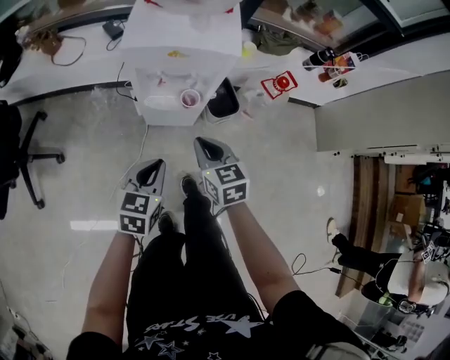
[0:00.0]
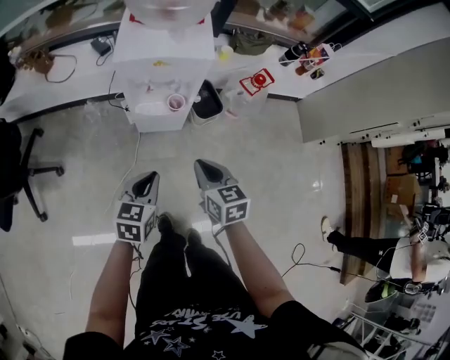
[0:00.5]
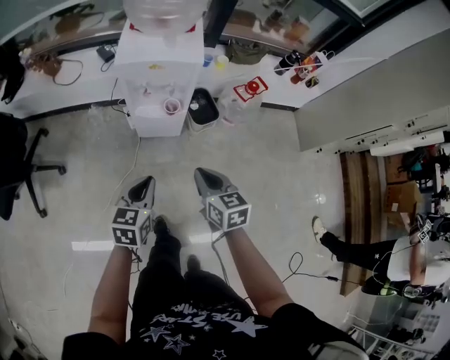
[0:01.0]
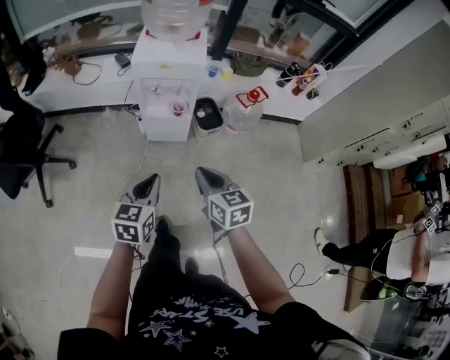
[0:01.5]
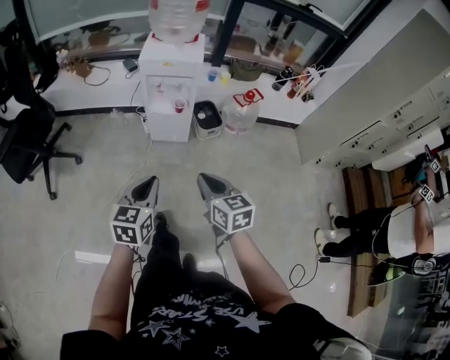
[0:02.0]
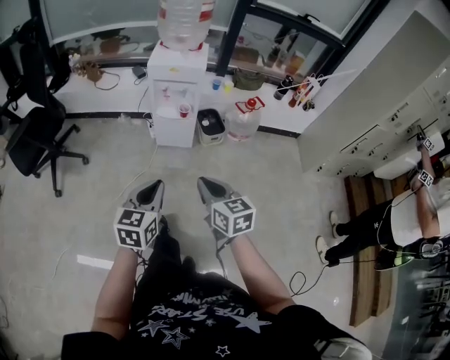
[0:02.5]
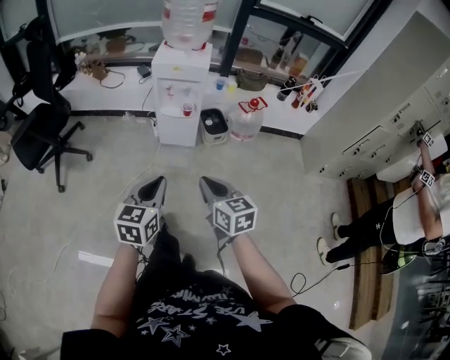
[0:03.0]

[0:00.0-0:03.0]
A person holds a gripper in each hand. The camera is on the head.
0:00.0 to 0:01.5: The grippers both shift backward and upward by about 25 cm.
0:01.5 to 0:03.0: The grippers both shift backward by about 20 cm.

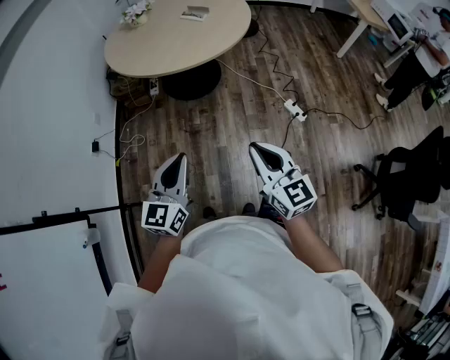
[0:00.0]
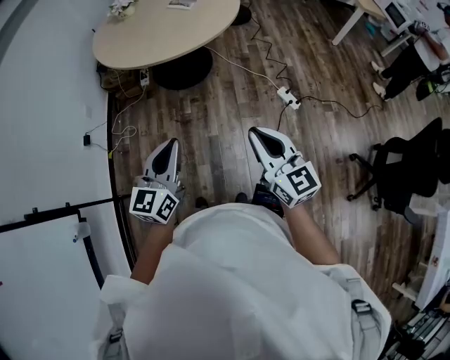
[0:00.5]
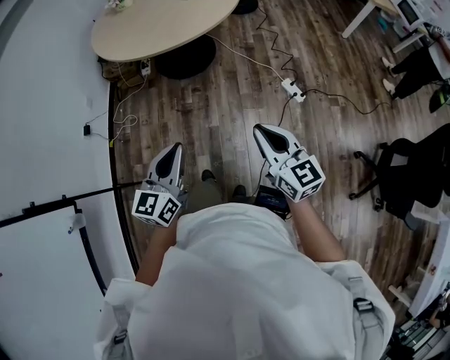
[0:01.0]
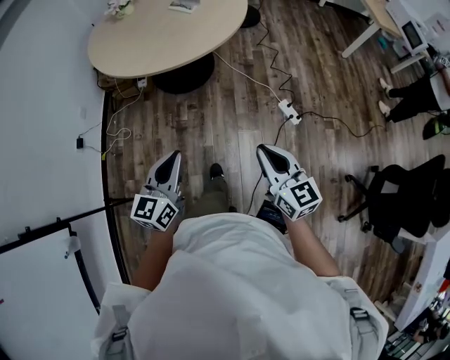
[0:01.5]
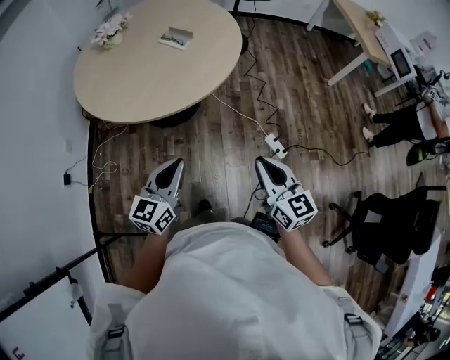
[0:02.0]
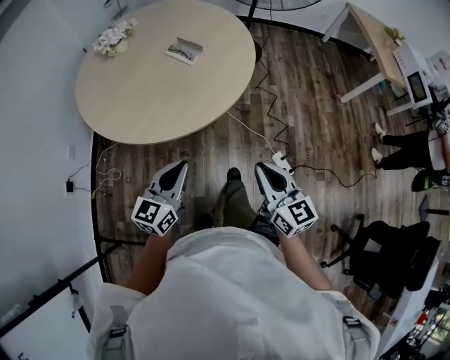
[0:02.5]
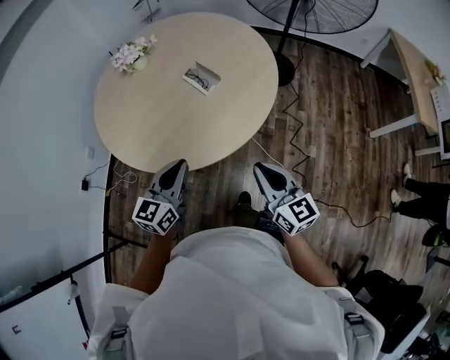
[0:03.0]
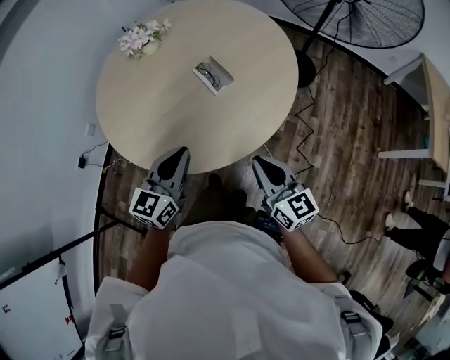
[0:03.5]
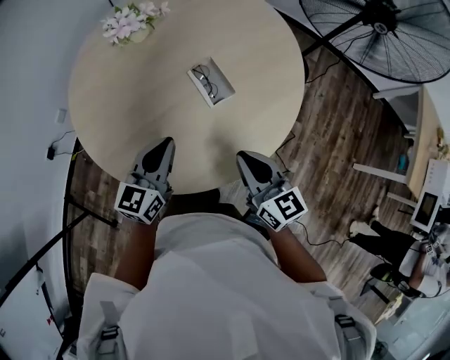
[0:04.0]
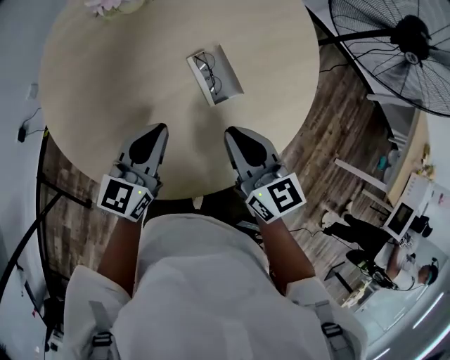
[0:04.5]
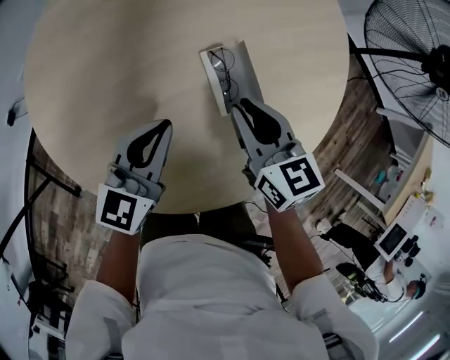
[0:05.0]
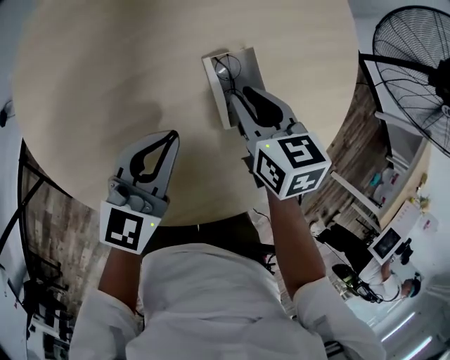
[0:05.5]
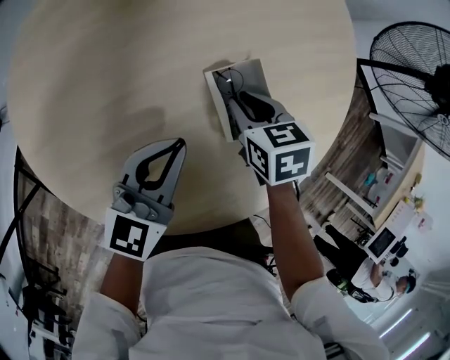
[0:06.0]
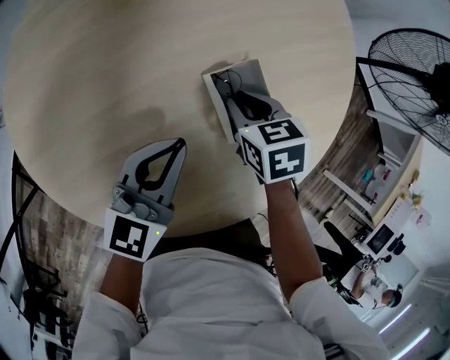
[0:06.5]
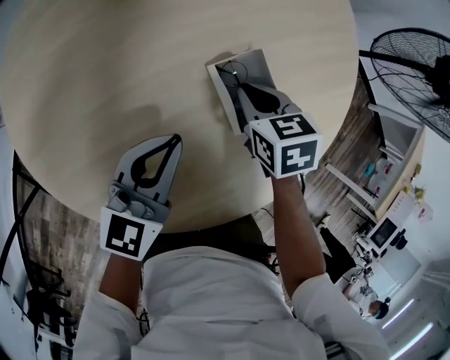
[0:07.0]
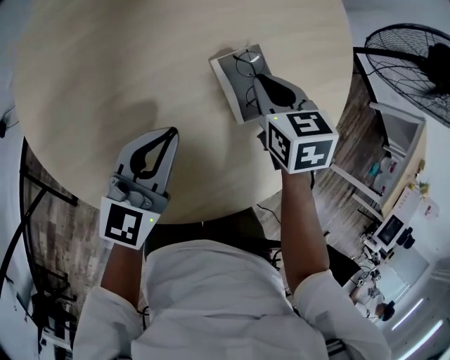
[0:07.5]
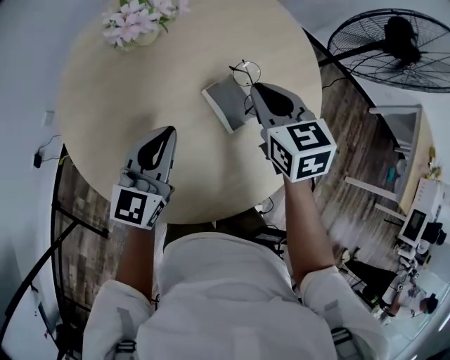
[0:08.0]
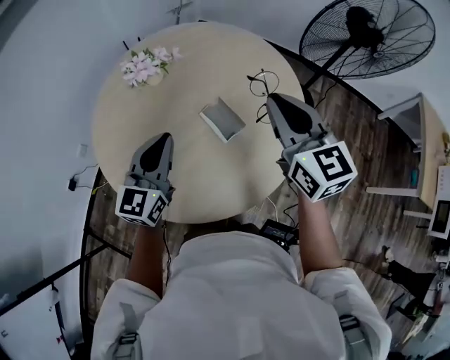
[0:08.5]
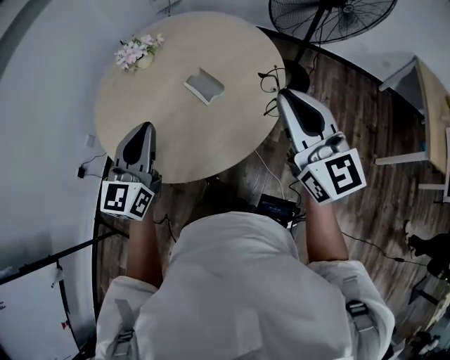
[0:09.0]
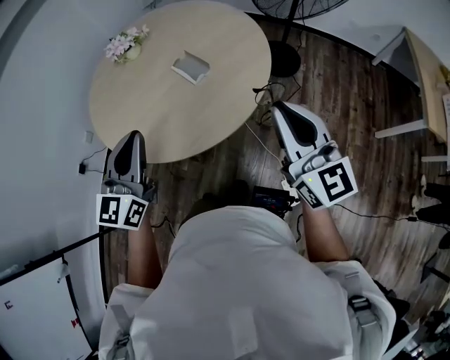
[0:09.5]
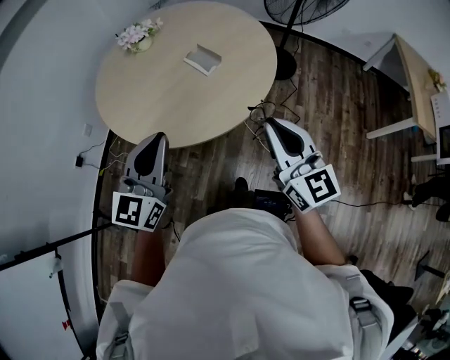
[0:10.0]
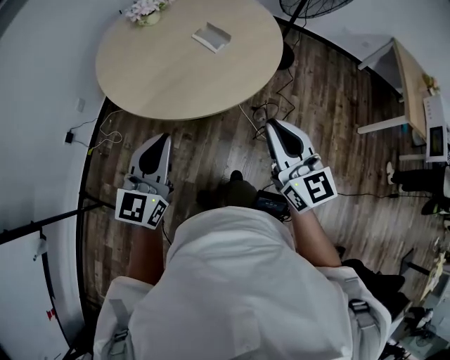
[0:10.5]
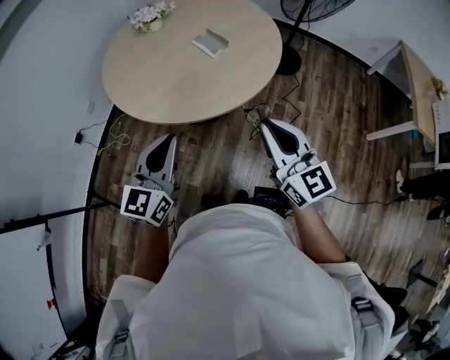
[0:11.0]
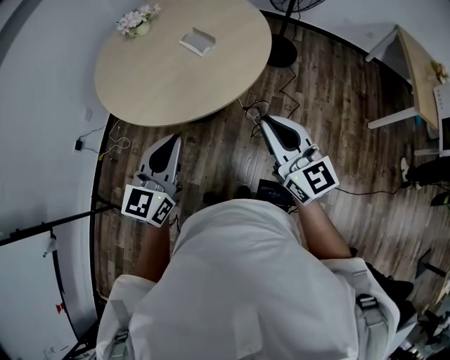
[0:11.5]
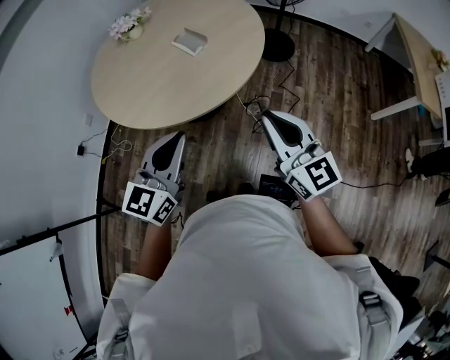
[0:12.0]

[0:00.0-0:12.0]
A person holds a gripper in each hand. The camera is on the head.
0:00.0 to 0:02.0: The left gripper heads forward, covering some 30 cm; the right gripper goes some 30 cm forward and to the right.
0:02.0 to 0:04.0: The pair of grippers is taken some 50 cm. The right gripper swivels about 30 degrees; the left gripper turns by some 30 degrees.
0:04.0 to 0:06.0: The right gripper travels forward and downward by some 35 cm, and angles its fingers downward, by about 40 degrees. The left gripper heads forward and downward, covering about 20 cm.
0:06.0 to 0:08.0: The right gripper is displaced upward by some 25 cm, and changes its angle by some 30 degrees; the left gripper shifts some 15 cm upward and to the left.
0:08.0 to 0:10.0: The two grippers travel together, backward, roughly 50 cm. The right gripper tilts its fingers some 40 degrees upward; the left gripper travels upward by about 20 cm.
0:10.0 to 0:12.0: The left gripper moves to the right and backward, about 15 cm; the right gripper heads backward and to the right, covering approximately 10 cm.

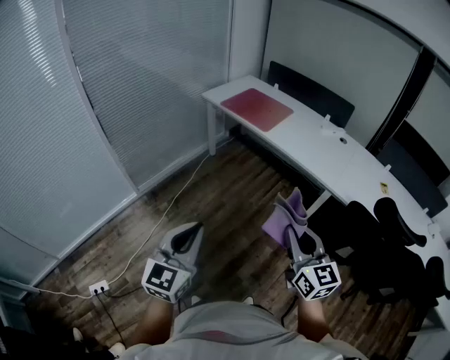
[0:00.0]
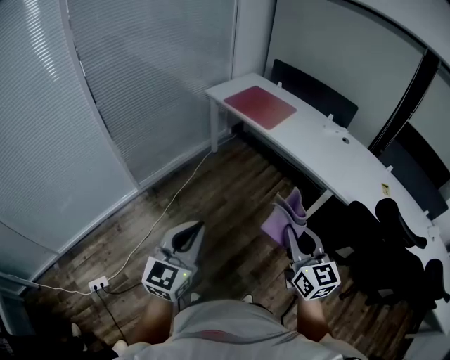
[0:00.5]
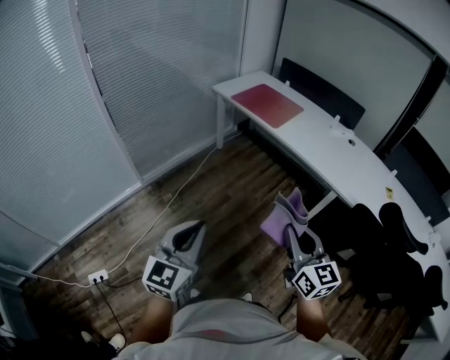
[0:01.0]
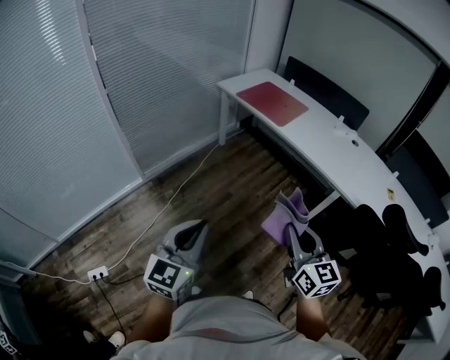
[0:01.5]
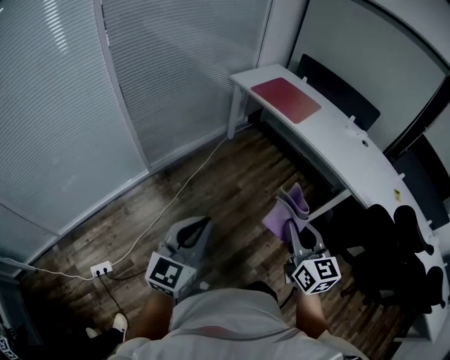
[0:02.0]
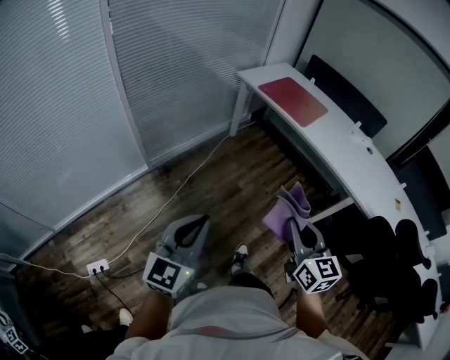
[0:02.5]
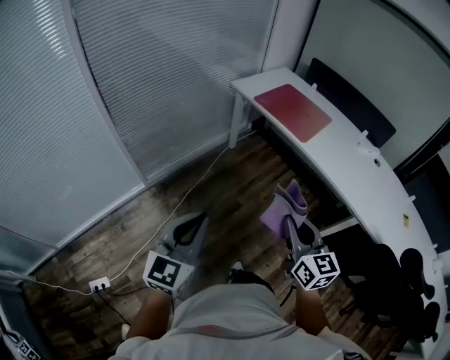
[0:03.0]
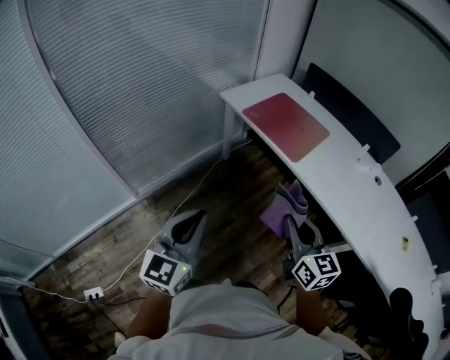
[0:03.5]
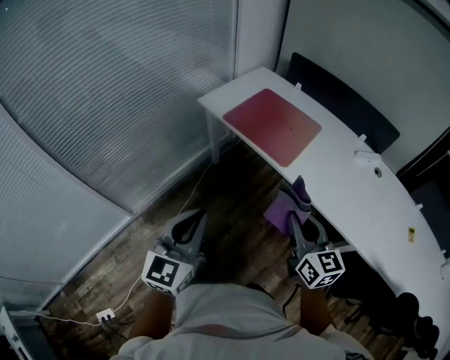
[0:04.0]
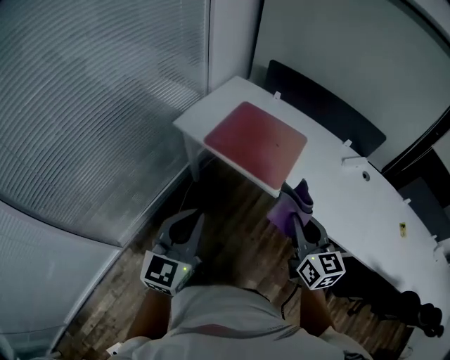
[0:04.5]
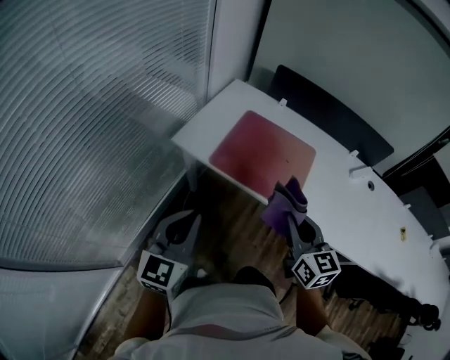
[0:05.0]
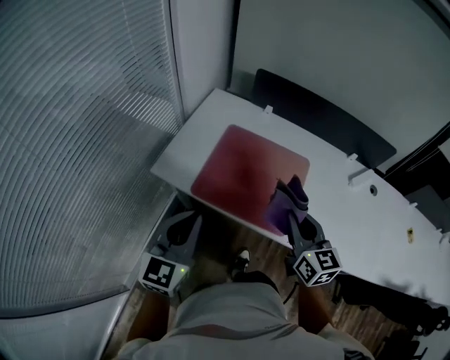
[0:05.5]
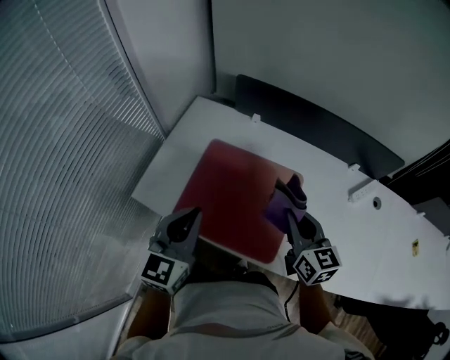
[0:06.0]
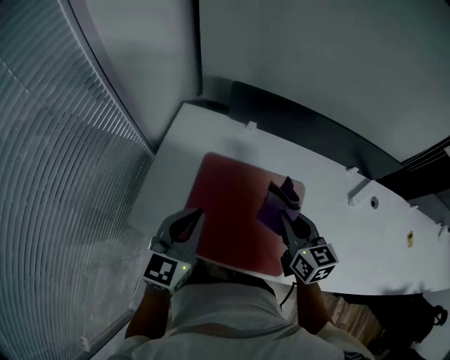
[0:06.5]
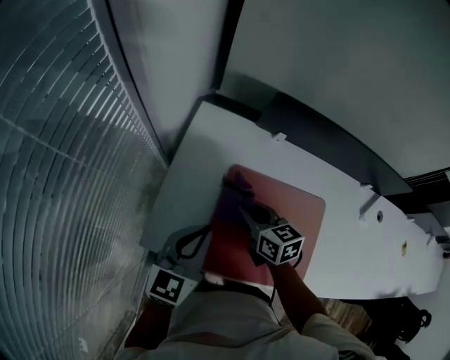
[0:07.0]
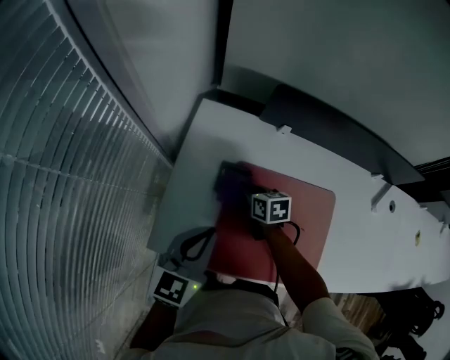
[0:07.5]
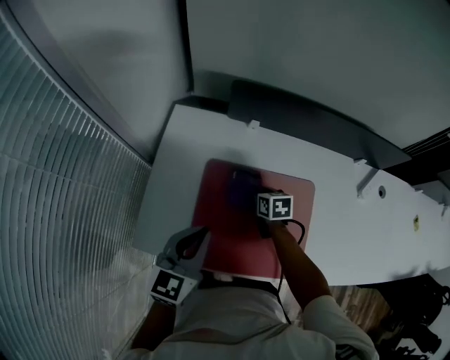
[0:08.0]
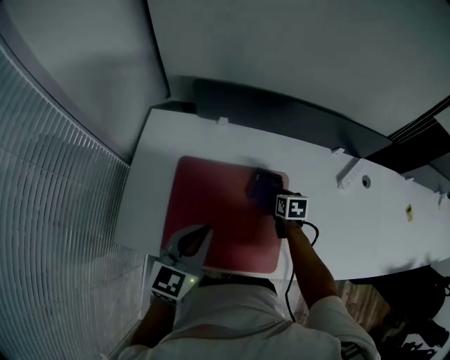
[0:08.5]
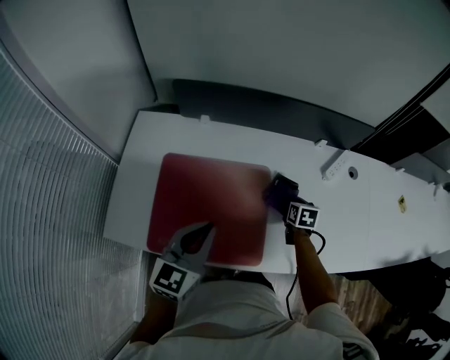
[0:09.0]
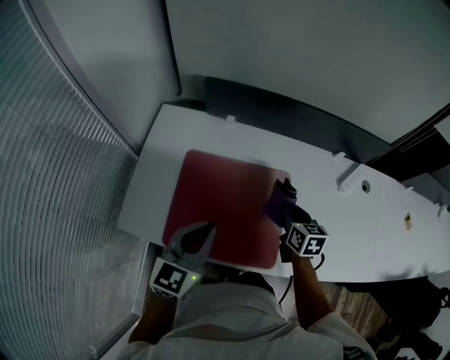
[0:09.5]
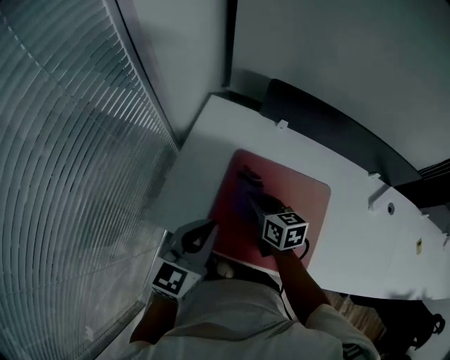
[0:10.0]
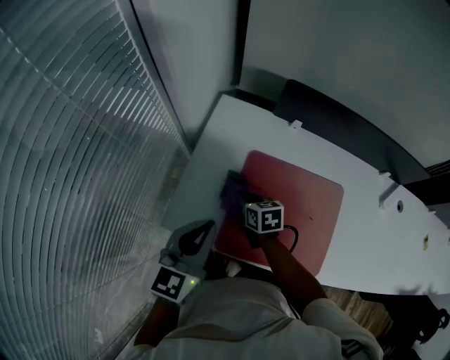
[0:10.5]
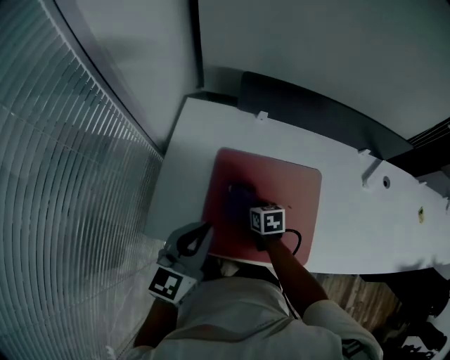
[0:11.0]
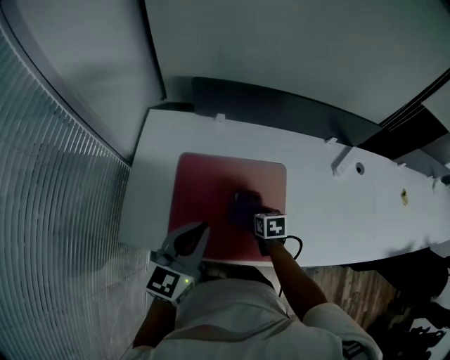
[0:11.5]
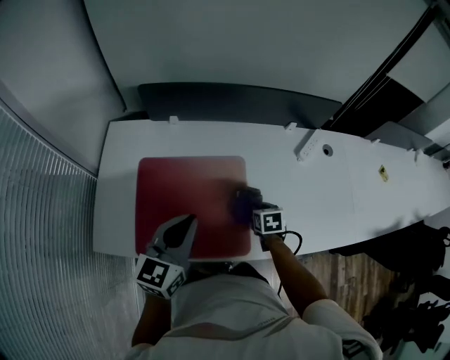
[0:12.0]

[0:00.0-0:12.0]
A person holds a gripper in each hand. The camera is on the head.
0:00.0 to 0:02.0: The two grippers go approximately 15 cm to the left.
0:02.0 to 0:04.0: The two grippers travel together, forward, about 50 cm.
0:04.0 to 0:06.0: The pair of grippers is taken forward, roughly 60 cm. The right gripper changes its angle by about 20 degrees; the left gripper changes its angle by about 20 degrees.
0:06.0 to 0:08.0: The right gripper heads downward, forward and to the left, covering about 35 cm, and angles its fingers downward, by approximately 30 degrees, while the left gripper shifts about 20 cm forward, downward and to the left.
0:08.0 to 0:10.0: The right gripper swivels approximately 20 degrees.
0:10.0 to 0:12.0: The left gripper moves some 25 cm, while the right gripper ends up roughly 40 cm from where it was, and turns by roughly 40 degrees.
